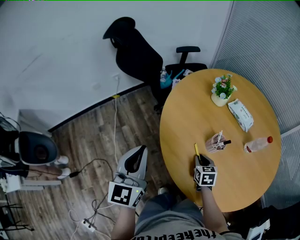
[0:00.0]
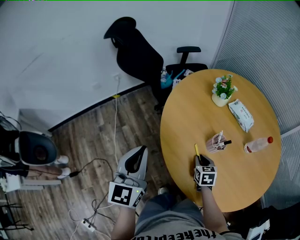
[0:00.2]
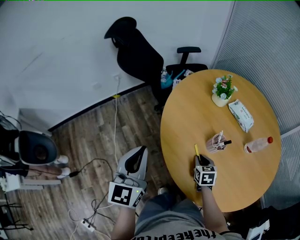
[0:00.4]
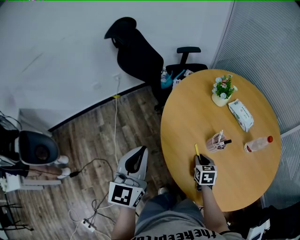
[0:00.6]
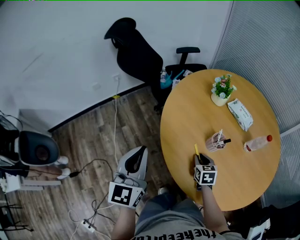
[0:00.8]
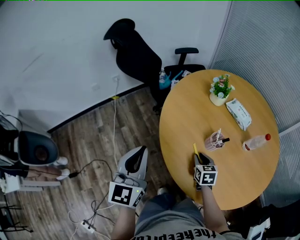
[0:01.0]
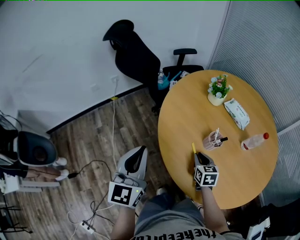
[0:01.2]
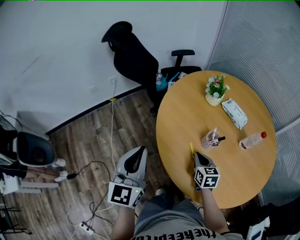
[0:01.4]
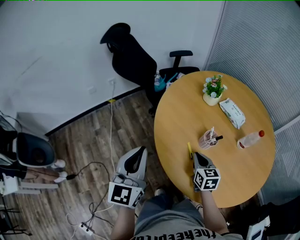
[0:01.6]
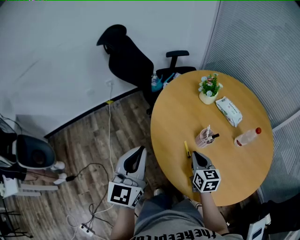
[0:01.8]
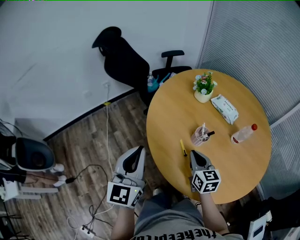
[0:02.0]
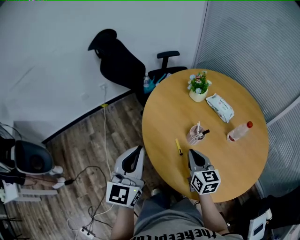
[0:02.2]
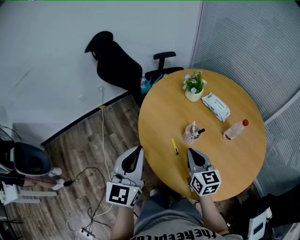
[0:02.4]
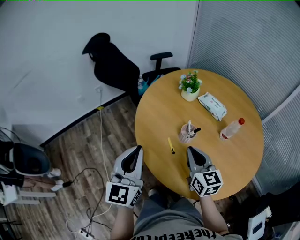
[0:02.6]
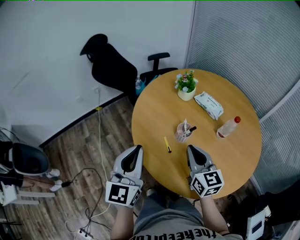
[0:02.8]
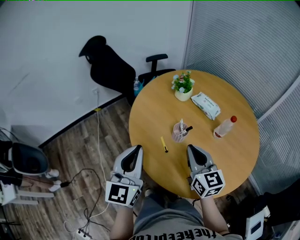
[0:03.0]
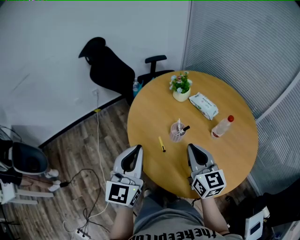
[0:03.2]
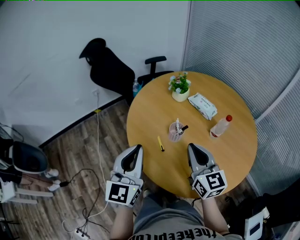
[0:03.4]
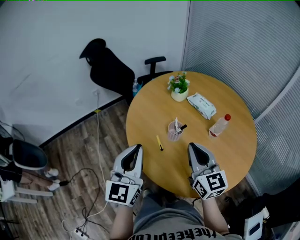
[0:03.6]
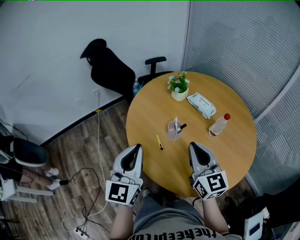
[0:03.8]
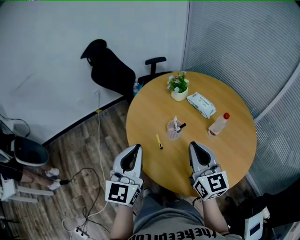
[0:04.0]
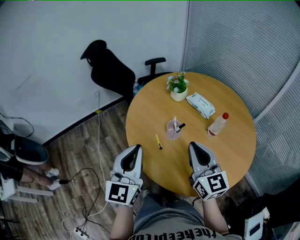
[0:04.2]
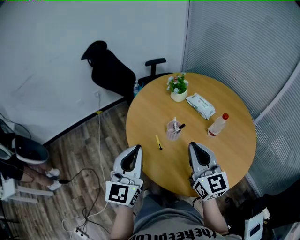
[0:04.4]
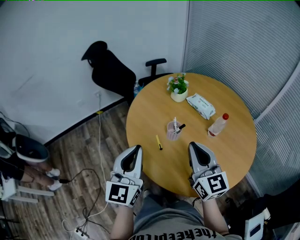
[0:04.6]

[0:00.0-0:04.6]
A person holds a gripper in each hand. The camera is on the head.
0.0 to 1.6 s: The right gripper shifts approximately 10 cm upward.
1.6 to 3.0 s: The left gripper goes some 10 cm to the right, while the right gripper heads upward and to the right, covering approximately 20 cm, and turns by approximately 20 degrees.
3.0 to 4.6 s: The right gripper travels upward by approximately 5 cm; the left gripper ends up about 5 cm from where it was.

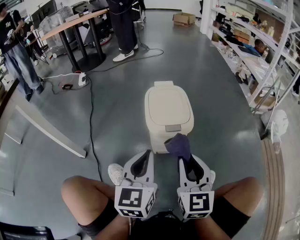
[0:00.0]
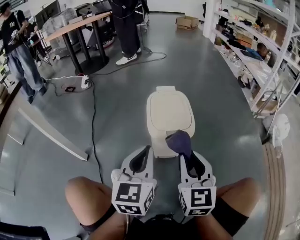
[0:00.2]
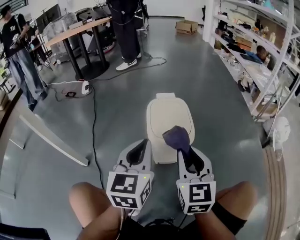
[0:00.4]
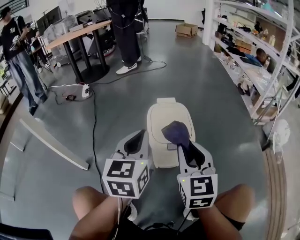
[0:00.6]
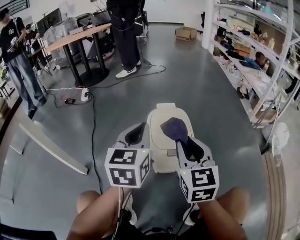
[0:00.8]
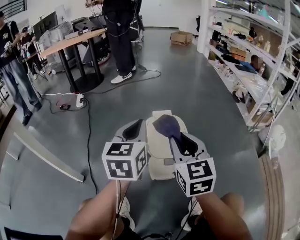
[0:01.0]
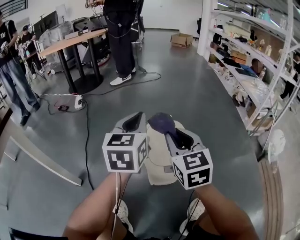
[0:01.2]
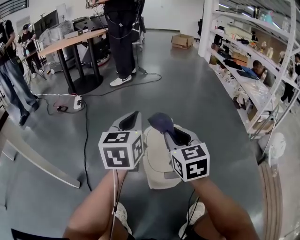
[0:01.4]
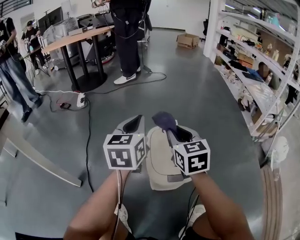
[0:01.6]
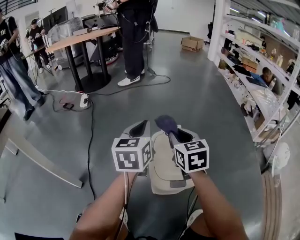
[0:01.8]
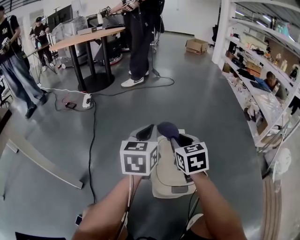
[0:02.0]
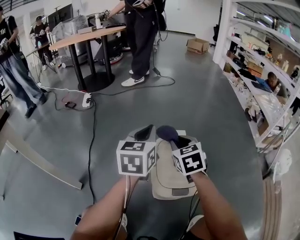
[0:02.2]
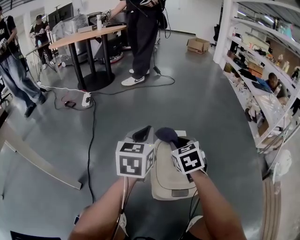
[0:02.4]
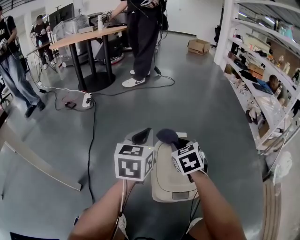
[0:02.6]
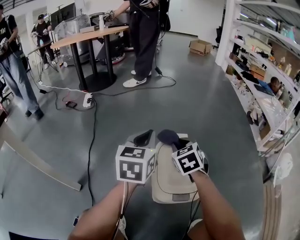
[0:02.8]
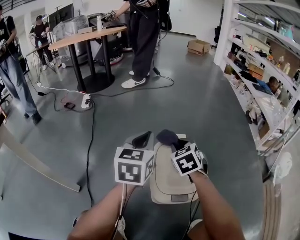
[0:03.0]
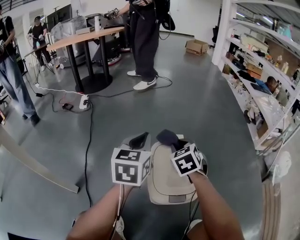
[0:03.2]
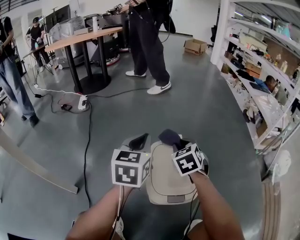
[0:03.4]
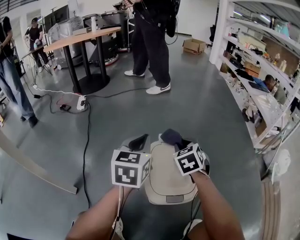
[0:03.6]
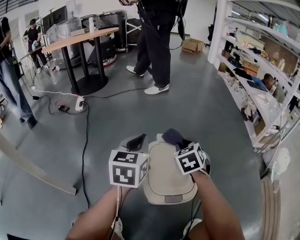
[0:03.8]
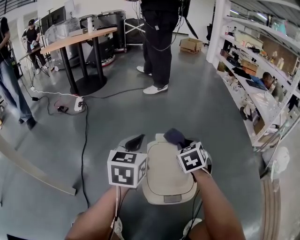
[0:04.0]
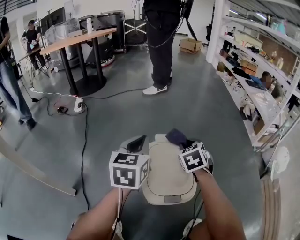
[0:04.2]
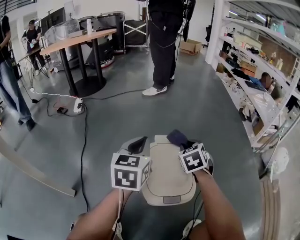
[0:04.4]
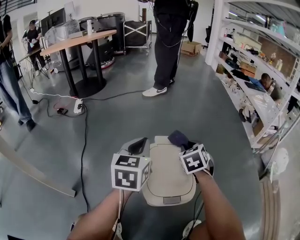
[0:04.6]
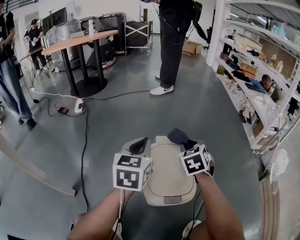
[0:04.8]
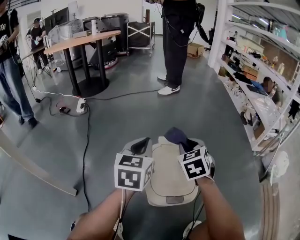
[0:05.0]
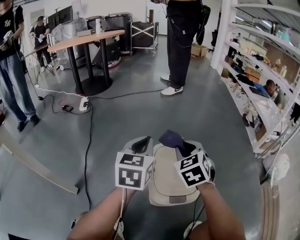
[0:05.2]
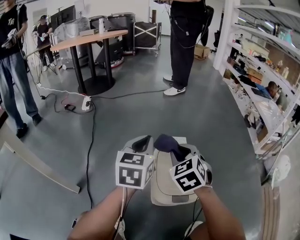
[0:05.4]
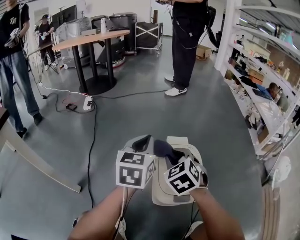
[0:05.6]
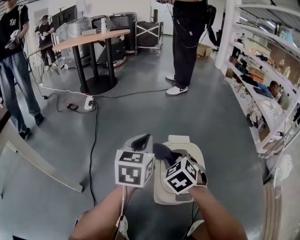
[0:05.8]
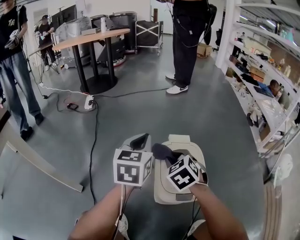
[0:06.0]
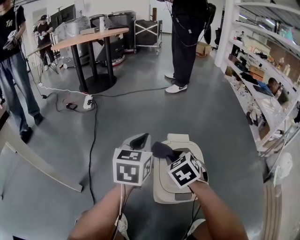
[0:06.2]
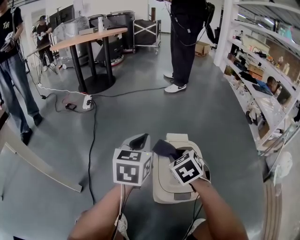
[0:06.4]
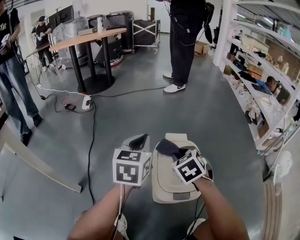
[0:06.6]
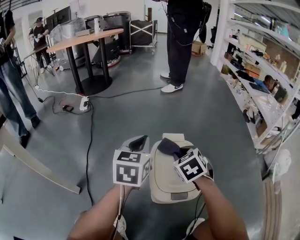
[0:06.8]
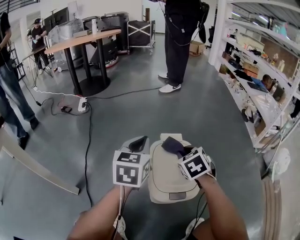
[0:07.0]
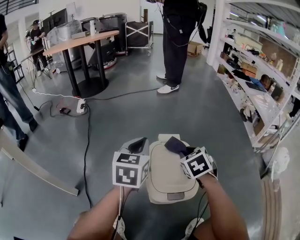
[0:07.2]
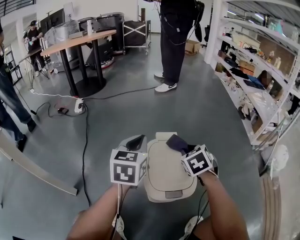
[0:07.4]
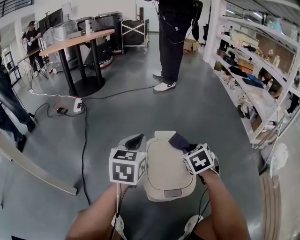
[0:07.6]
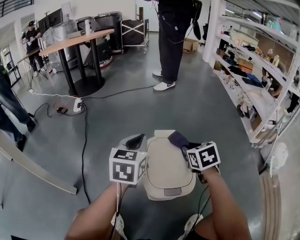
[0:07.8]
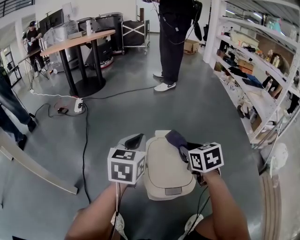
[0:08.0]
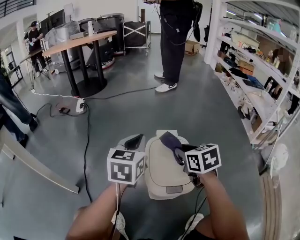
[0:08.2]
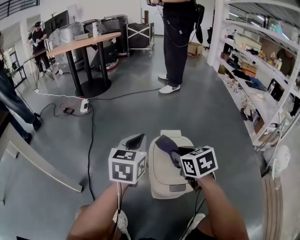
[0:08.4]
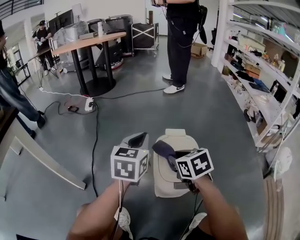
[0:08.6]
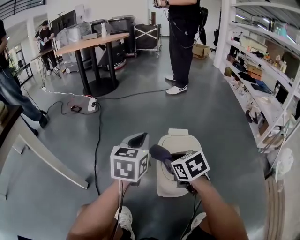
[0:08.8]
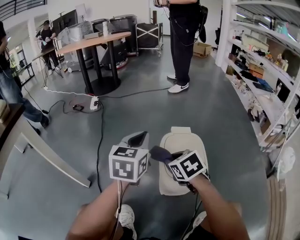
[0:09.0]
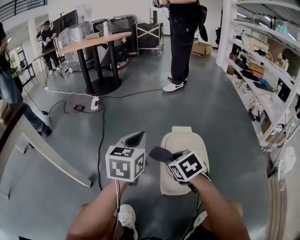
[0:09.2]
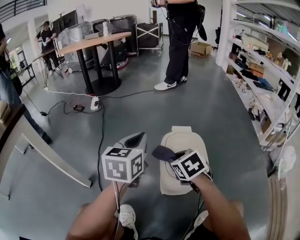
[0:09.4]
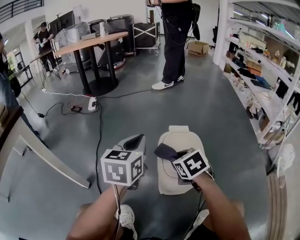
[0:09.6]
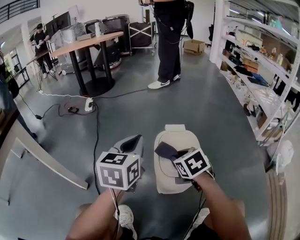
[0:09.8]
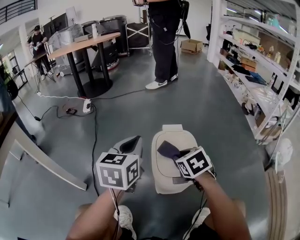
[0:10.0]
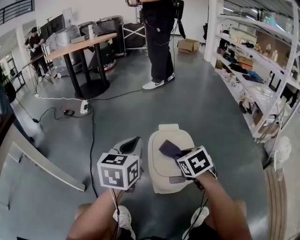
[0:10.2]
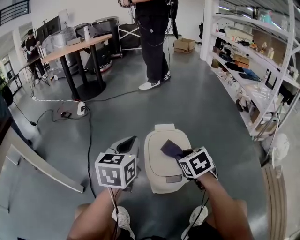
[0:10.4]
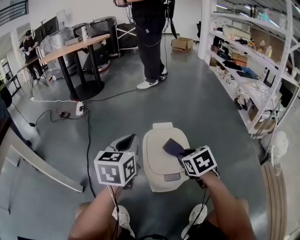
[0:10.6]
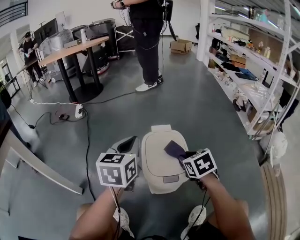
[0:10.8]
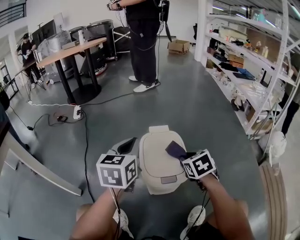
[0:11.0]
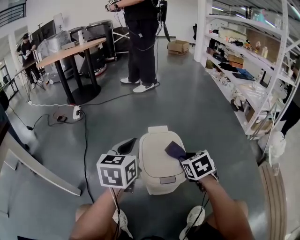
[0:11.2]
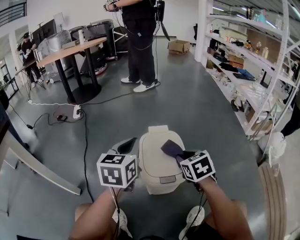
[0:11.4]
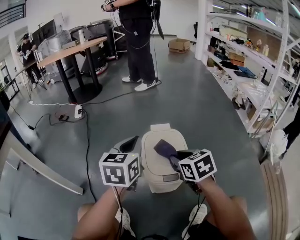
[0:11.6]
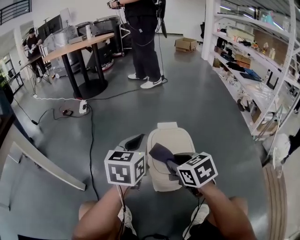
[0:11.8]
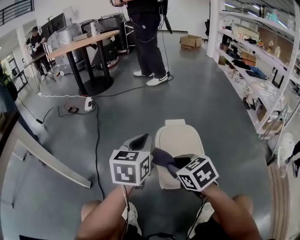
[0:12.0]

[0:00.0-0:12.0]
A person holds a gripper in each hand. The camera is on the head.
0.0 to 1.6 s: The grippers both shift forward by approximately 30 cm.
1.6 to 3.0 s: The right gripper travels downward and forward by approximately 10 cm, and changes its angle by about 30 degrees. The left gripper ends up approximately 5 cm from where it was.
3.0 to 4.4 s: The right gripper is displaced to the right by roughly 10 cm.
4.4 to 6.0 s: The left gripper is displaced to the left by roughly 5 cm. Meanwhile the right gripper goes approximately 15 cm to the left and backward, and rotates roughly 20 degrees.
6.0 to 7.6 s: The right gripper moves to the right, some 15 cm. The left gripper moves some 5 cm.
7.6 to 9.0 s: The left gripper heads to the left and backward, covering about 10 cm. Meanwhile the right gripper shifts about 20 cm to the left and backward, and changes its angle by about 20 degrees.
9.0 to 10.4 s: The right gripper goes approximately 10 cm to the right.
10.4 to 12.0 s: The right gripper goes about 10 cm to the left and backward.

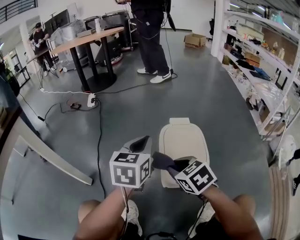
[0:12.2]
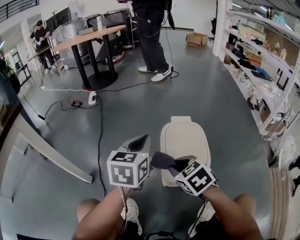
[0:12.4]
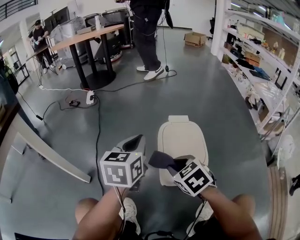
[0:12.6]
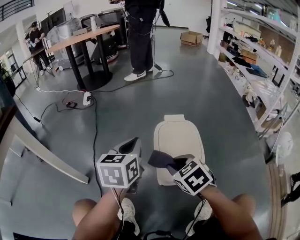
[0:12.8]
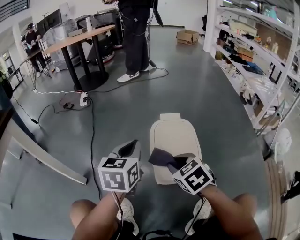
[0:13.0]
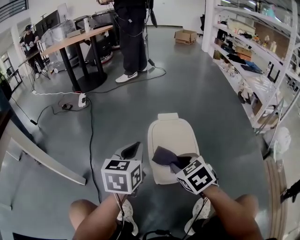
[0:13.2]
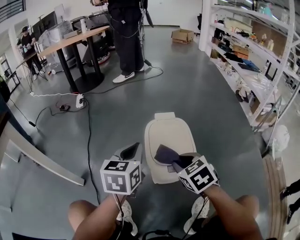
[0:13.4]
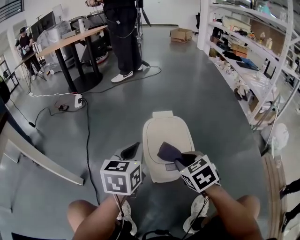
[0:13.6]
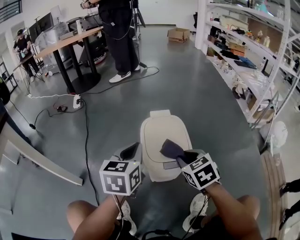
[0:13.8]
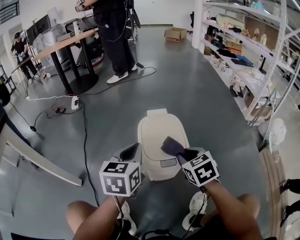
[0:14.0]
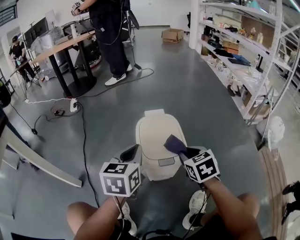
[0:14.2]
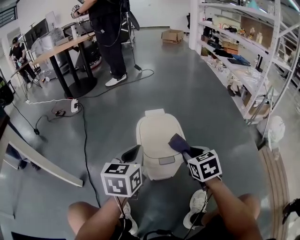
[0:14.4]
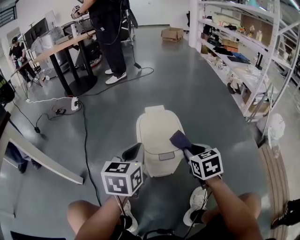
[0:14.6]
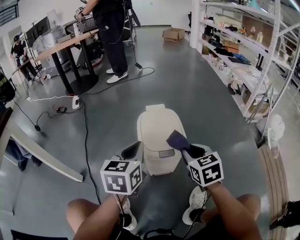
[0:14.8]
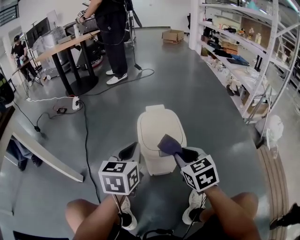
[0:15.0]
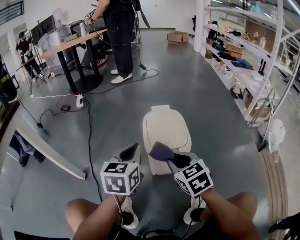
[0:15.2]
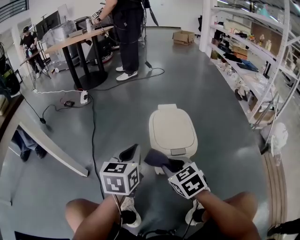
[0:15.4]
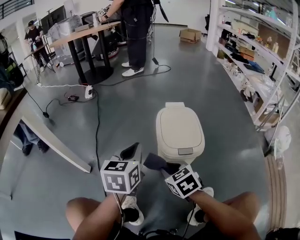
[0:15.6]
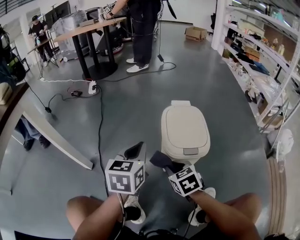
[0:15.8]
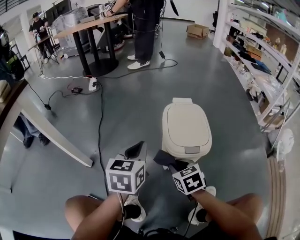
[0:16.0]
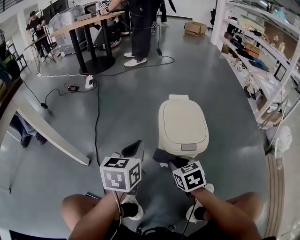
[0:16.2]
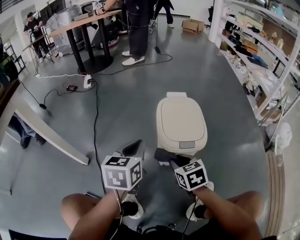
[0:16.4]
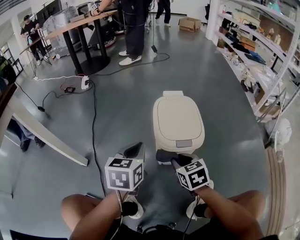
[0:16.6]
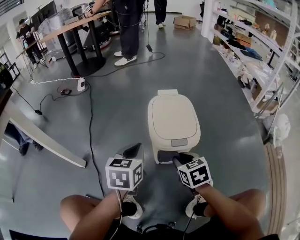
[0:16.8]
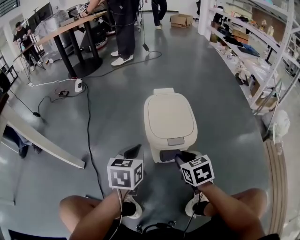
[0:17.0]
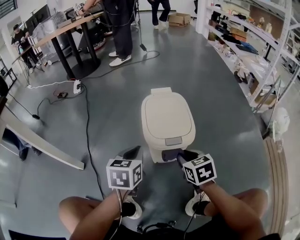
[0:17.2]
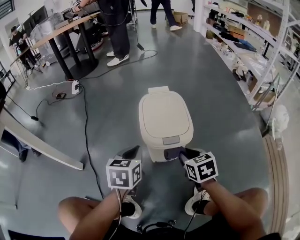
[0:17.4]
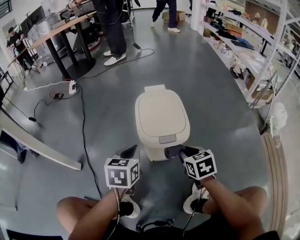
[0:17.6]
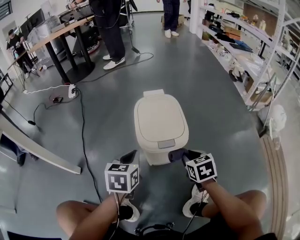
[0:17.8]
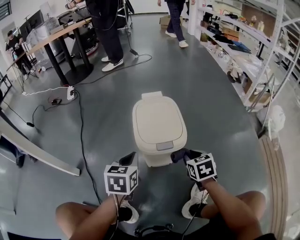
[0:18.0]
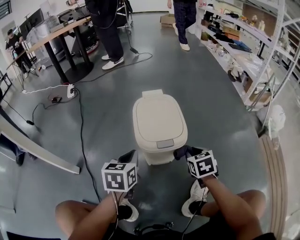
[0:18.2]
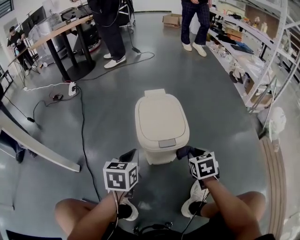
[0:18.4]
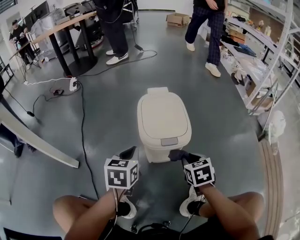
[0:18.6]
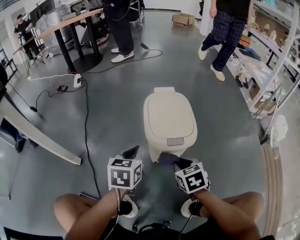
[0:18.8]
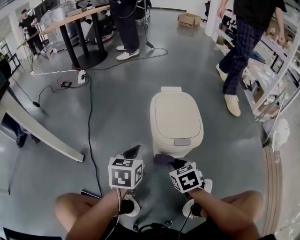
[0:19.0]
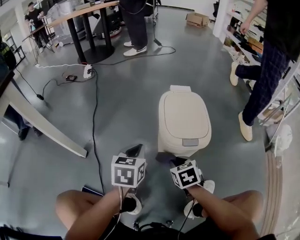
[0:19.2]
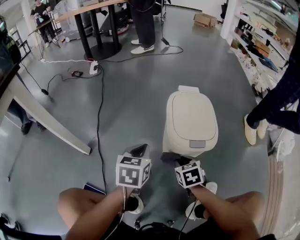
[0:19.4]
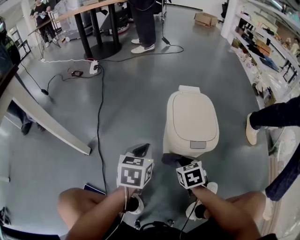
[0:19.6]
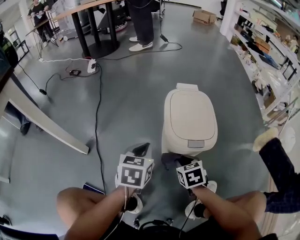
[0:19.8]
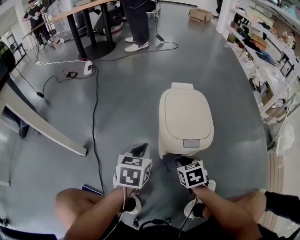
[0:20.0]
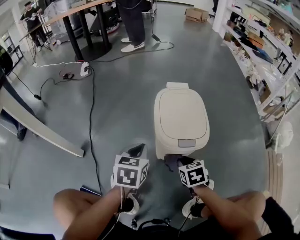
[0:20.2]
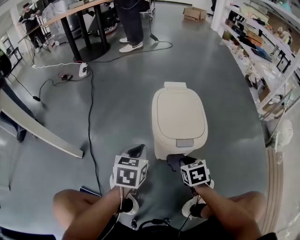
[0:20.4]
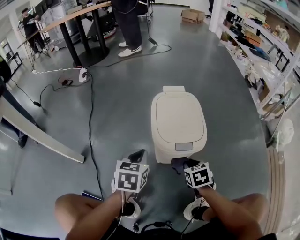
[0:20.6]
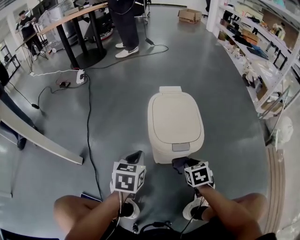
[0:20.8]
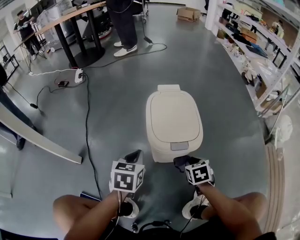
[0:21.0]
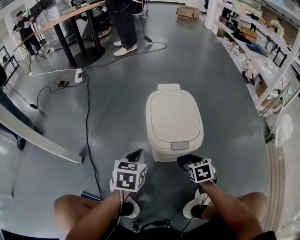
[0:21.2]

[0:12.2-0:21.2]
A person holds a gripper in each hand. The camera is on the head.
12.2 to 13.8 s: The right gripper shifts approximately 10 cm to the right. Meanwhile the left gripper shifts by about 5 cm.
13.8 to 15.2 s: Both grippers move backward, some 10 cm.
15.2 to 16.6 s: Both grippers travel together downward, about 10 cm.
16.6 to 18.2 s: The right gripper goes roughly 15 cm to the right; the left gripper ends up roughly 5 cm from where it was.
18.2 to 19.8 s: The right gripper shifts roughly 15 cm to the left, while the left gripper shifts roughly 5 cm to the left.
19.8 to 21.2 s: The right gripper goes about 15 cm to the right.
